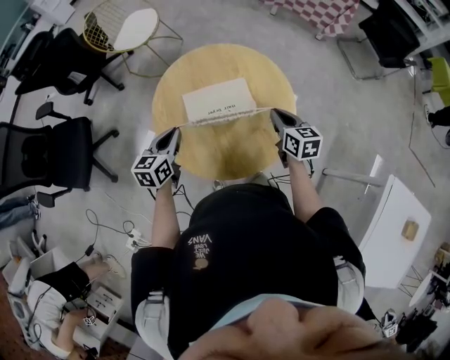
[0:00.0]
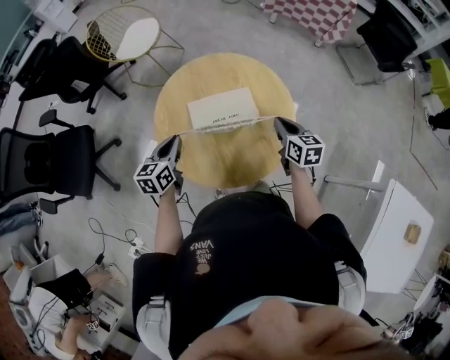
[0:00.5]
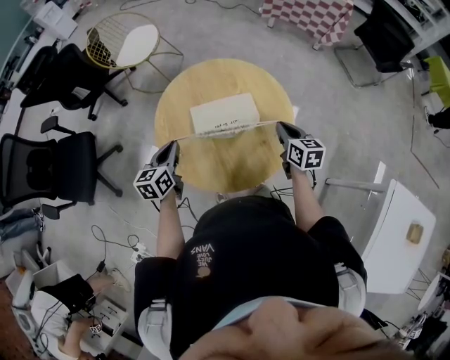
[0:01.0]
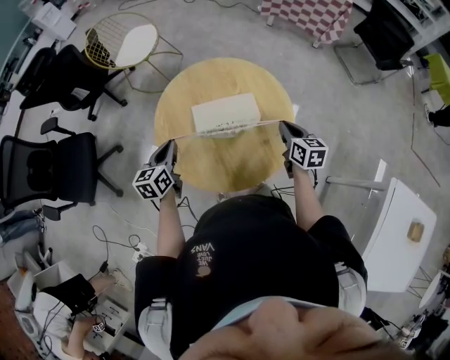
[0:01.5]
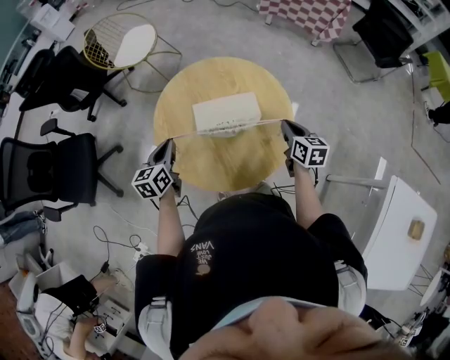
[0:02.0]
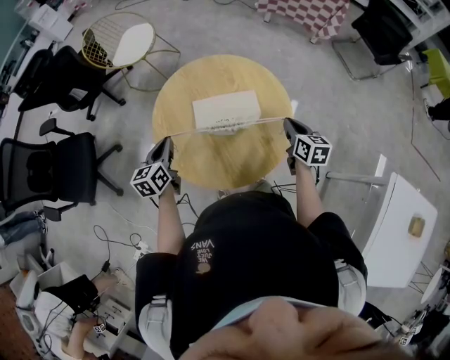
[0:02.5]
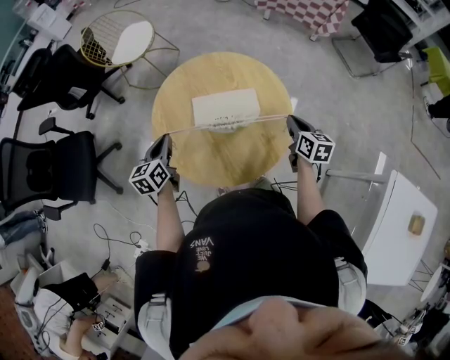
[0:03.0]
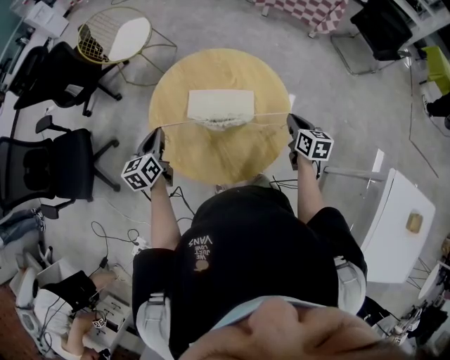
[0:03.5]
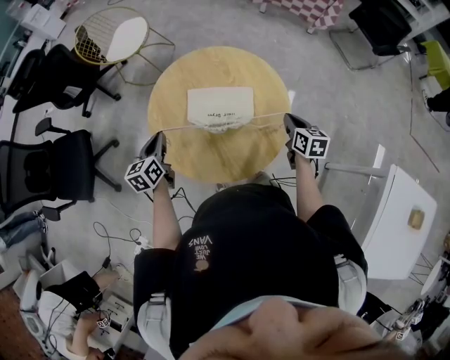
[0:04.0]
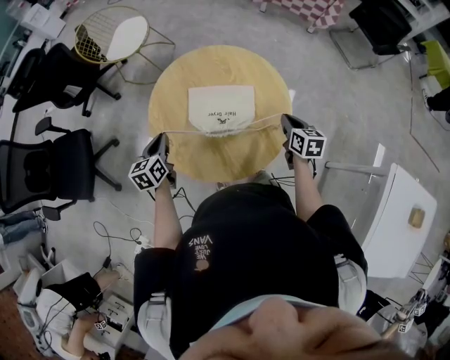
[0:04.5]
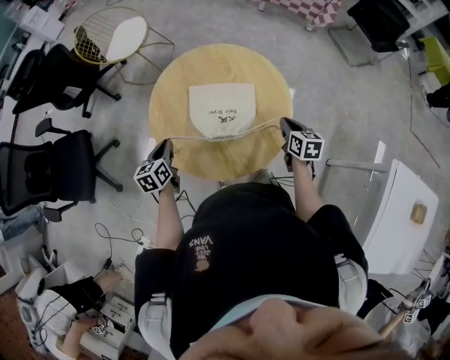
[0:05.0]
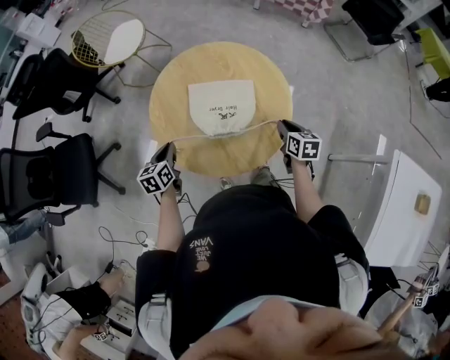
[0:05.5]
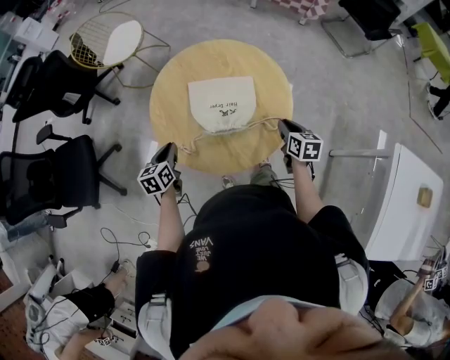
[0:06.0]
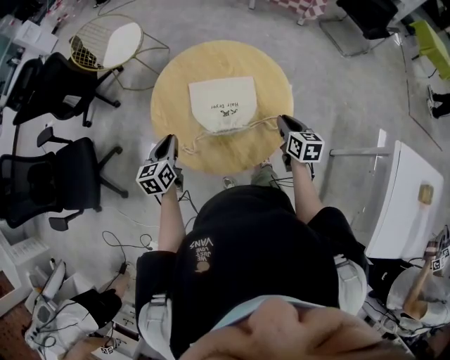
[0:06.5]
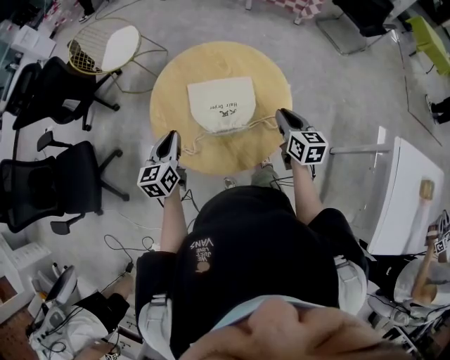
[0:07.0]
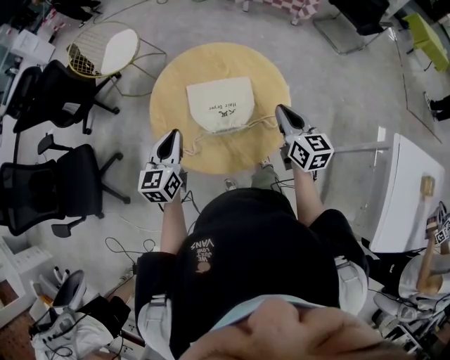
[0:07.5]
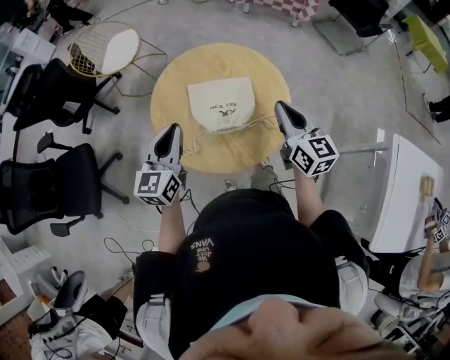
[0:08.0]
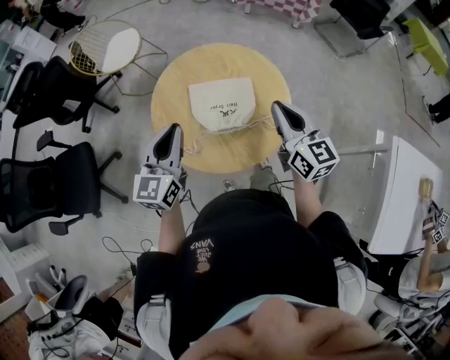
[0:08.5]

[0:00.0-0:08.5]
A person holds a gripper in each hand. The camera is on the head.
0:00.0 to 0:02.0: The right gripper goes roughly 5 cm to the right.
0:02.0 to 0:04.0: The grippers stay close to where they were, moving slightly.
0:04.0 to 0:06.5: The right gripper travels backward and to the left by about 10 cm.
0:06.5 to 0:08.5: The grippers both shift upward by about 20 cm. The right gripper swivels roughly 30 degrees; the left gripper rotates roughly 30 degrees.

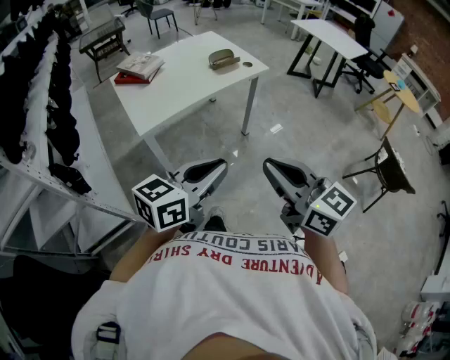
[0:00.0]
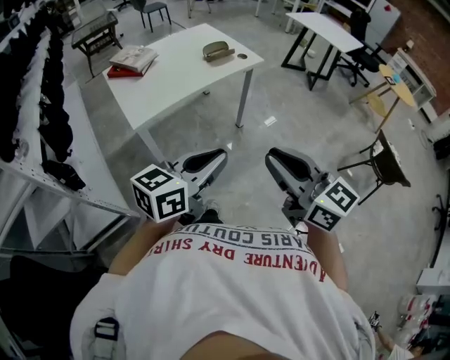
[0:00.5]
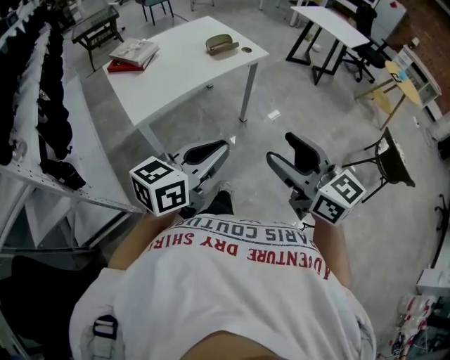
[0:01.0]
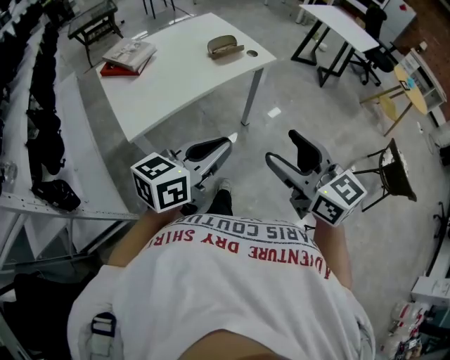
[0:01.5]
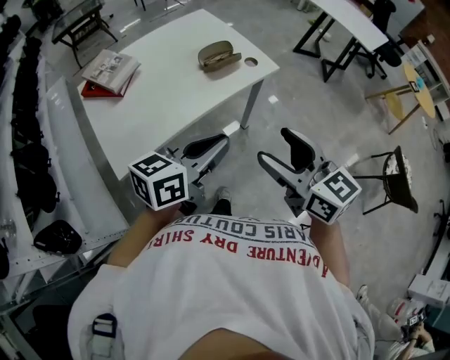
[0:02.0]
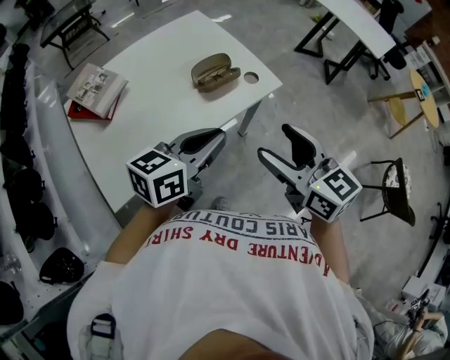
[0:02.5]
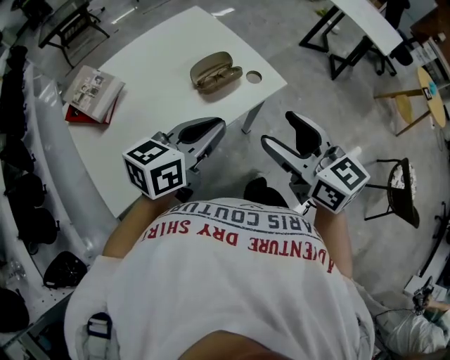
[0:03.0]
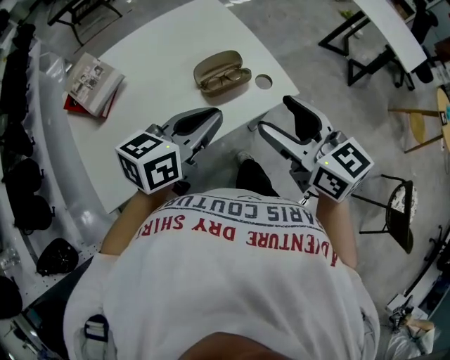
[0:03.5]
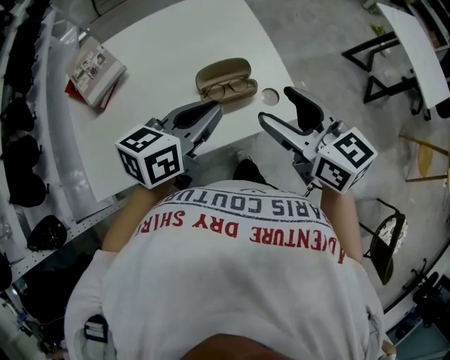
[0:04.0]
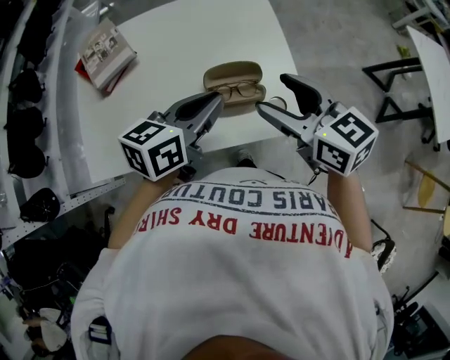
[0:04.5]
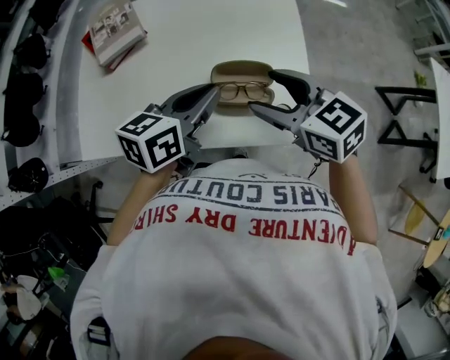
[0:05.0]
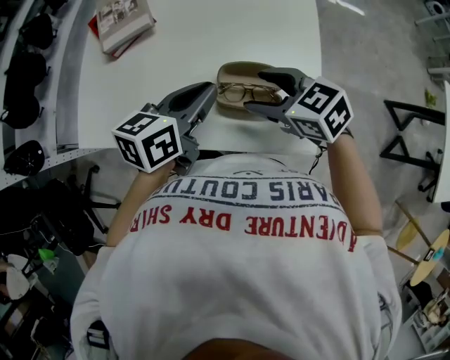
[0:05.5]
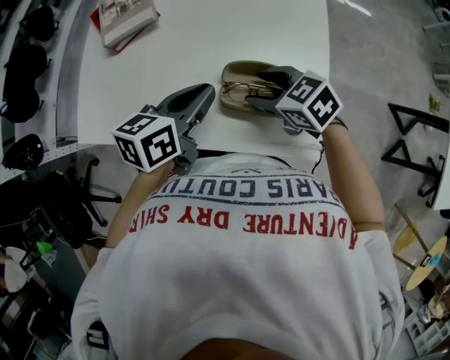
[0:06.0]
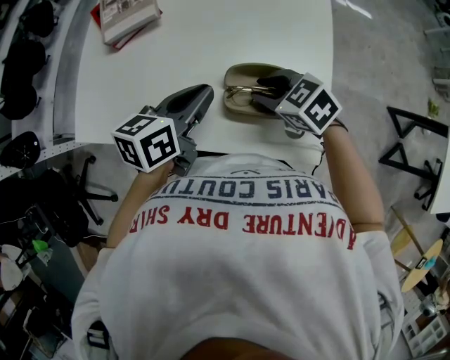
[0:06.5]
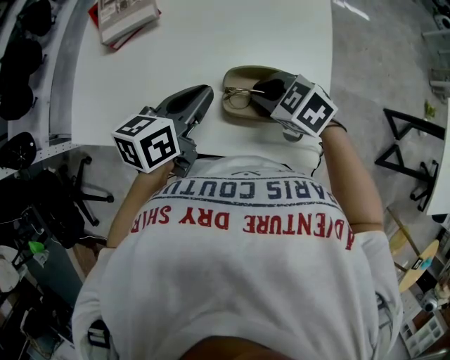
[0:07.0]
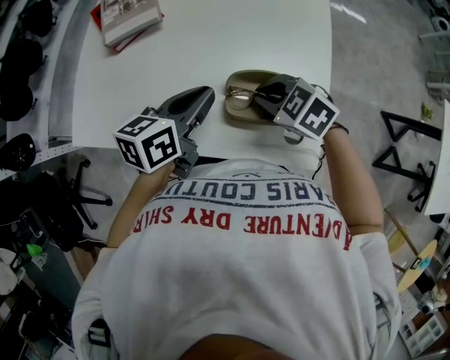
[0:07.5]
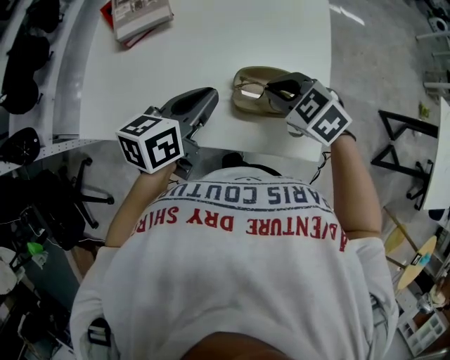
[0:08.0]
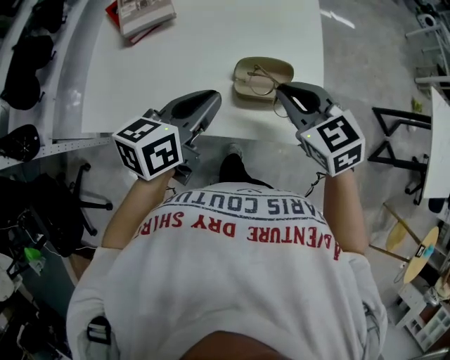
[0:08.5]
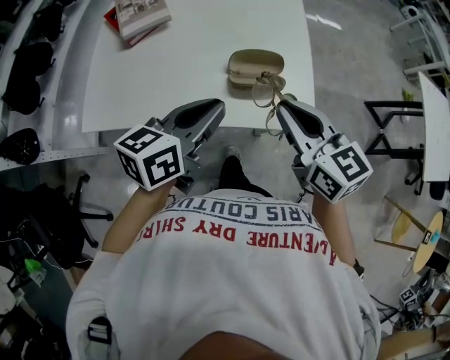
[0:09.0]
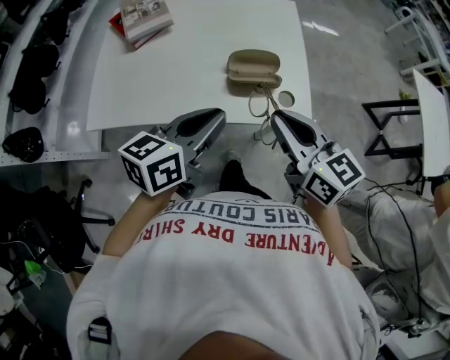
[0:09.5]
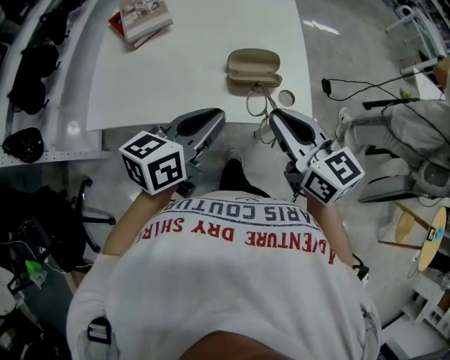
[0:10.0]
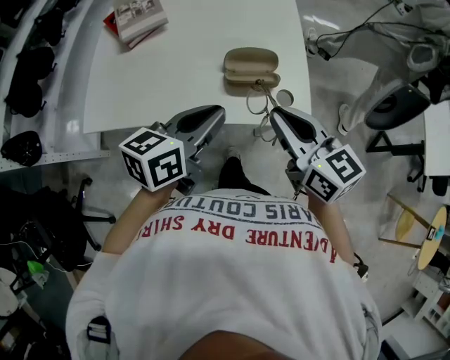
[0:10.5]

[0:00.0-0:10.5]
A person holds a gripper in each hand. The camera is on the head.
0:00.0 to 0:02.0: The two grippers go approximately 30 cm forward. The right gripper opens.
0:02.0 to 0:04.0: Both grippers travel together forward, about 35 cm. The right gripper rotates about 20 degrees; the left gripper turns by about 20 degrees.
0:04.0 to 0:06.5: The right gripper moves downward, about 20 cm, points its fingers some 30 degrees further downward, and closes its fingers. Meanwhile the left gripper moves downward, some 10 cm, and turns by about 40 degrees.
0:06.5 to 0:08.5: The left gripper heads upward and backward, covering approximately 10 cm; the right gripper is displaced upward by about 15 cm, and rotates about 30 degrees.
0:08.5 to 0:10.5: Both grippers travel together backward, some 10 cm. The right gripper changes its angle by approximately 30 degrees.

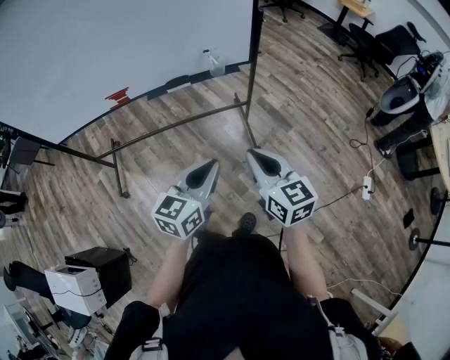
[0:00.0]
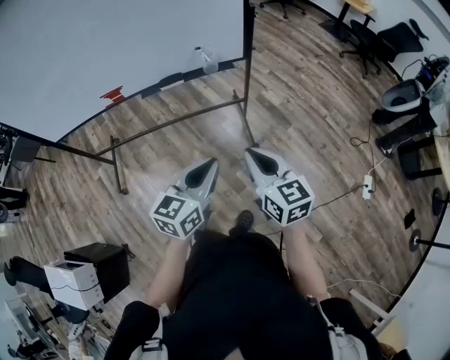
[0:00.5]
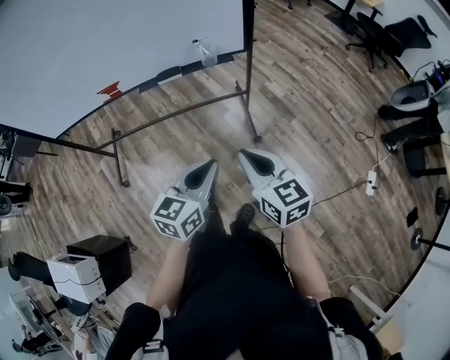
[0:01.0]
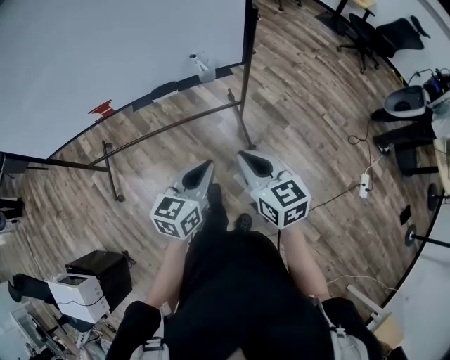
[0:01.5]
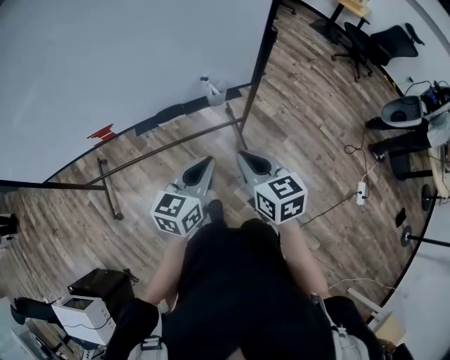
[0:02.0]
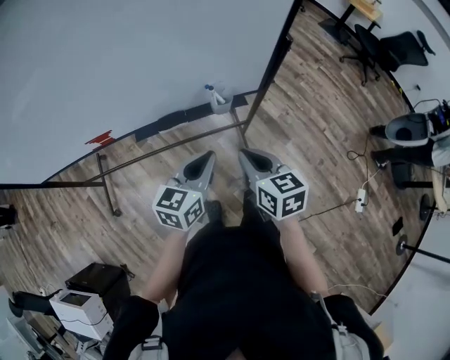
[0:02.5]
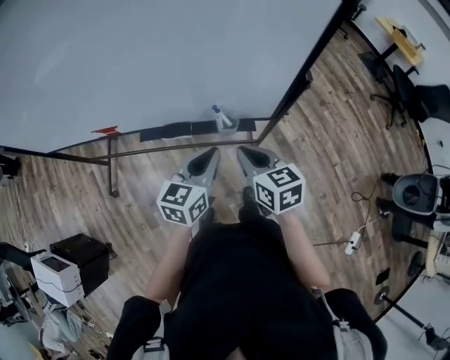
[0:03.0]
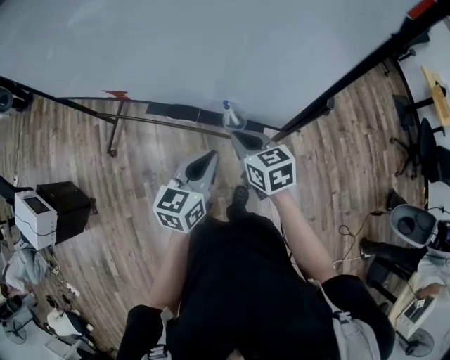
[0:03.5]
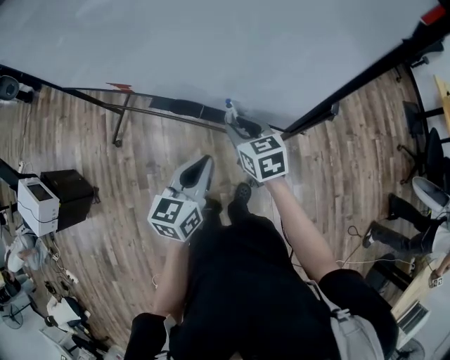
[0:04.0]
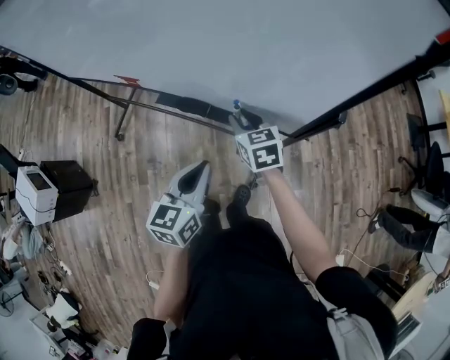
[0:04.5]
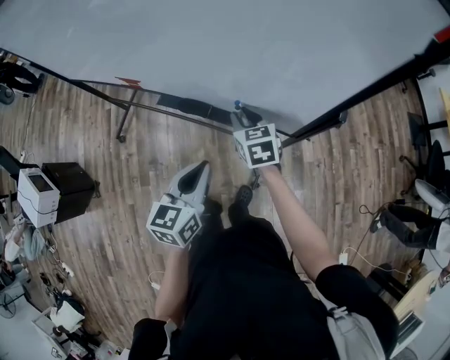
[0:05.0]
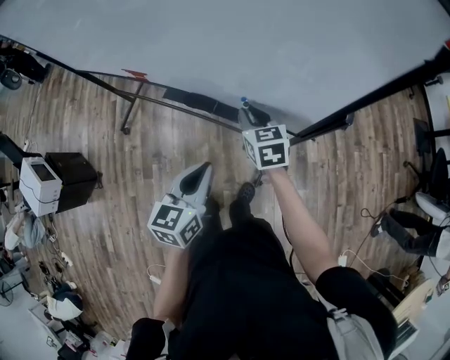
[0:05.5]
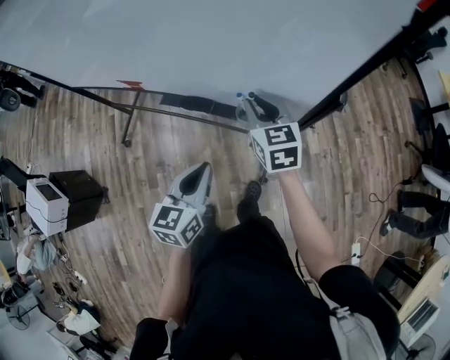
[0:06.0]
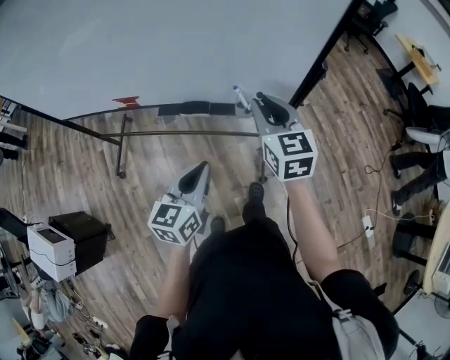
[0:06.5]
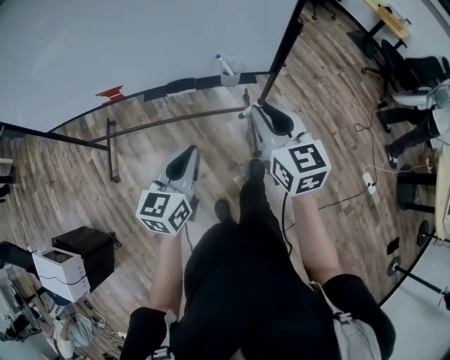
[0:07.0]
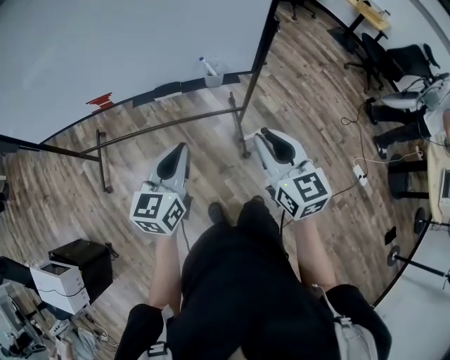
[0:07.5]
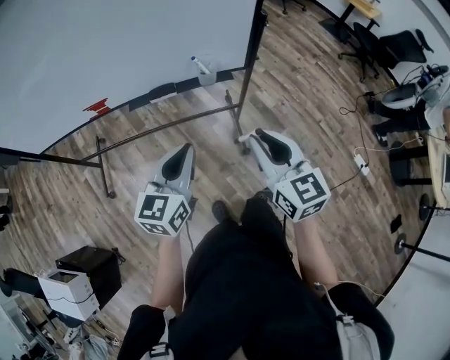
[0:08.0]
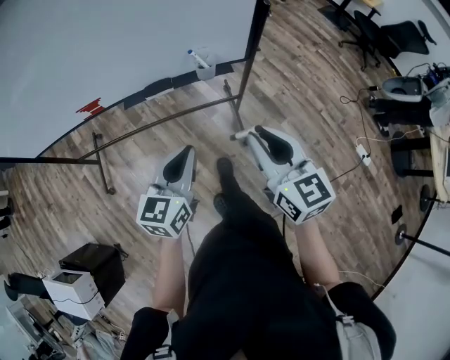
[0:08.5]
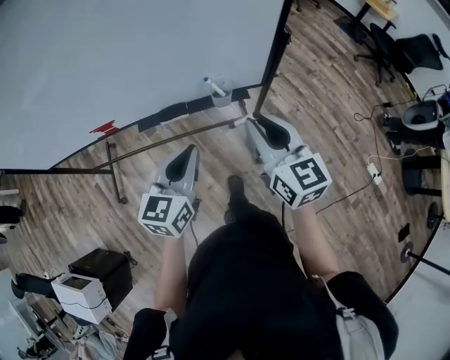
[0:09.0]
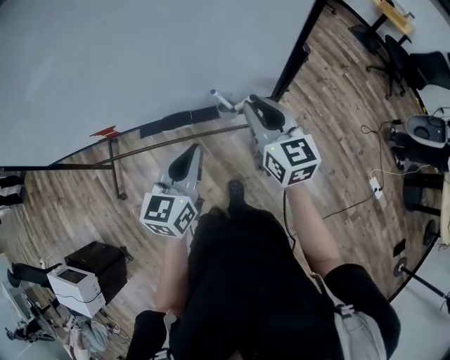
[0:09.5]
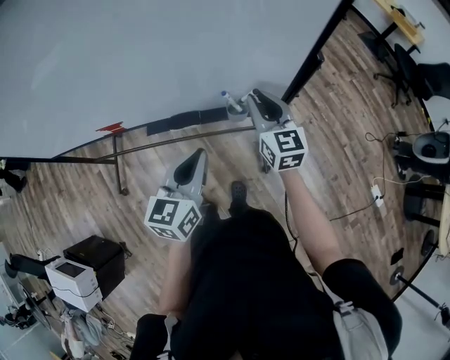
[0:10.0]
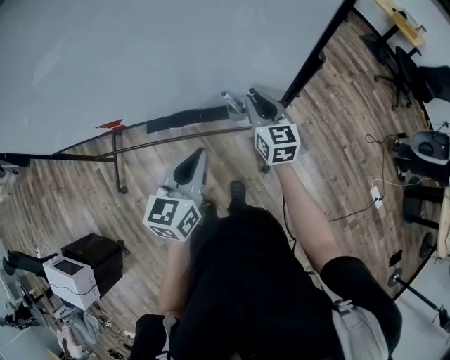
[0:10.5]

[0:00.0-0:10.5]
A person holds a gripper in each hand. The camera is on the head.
0:00.0 to 0:02.0: Both grippers travel together forward, approximately 20 cm.
0:02.0 to 0:04.0: The right gripper moves about 25 cm, changes its angle by about 40 degrees, and opens its fingers. The left gripper changes place by roughly 15 cm, and changes its angle by roughly 40 degrees.
0:04.0 to 0:06.5: The right gripper heads upward and backward, covering roughly 15 cm, and changes its angle by about 30 degrees. Meanwhile the left gripper goes about 15 cm to the left and backward.
0:06.5 to 0:08.5: The left gripper heads backward, covering roughly 5 cm. Meanwhile the right gripper goes approximately 25 cm backward.
0:08.5 to 0:10.5: The left gripper moves forward, approximately 15 cm, while the right gripper travels forward by some 30 cm.
